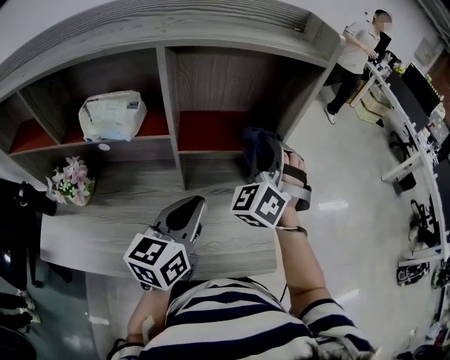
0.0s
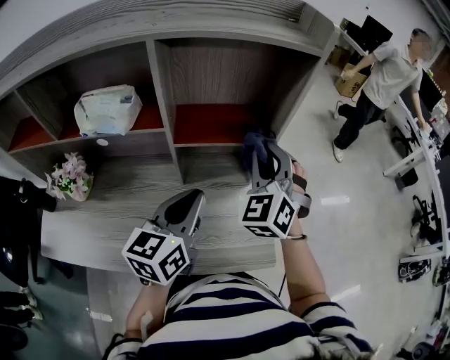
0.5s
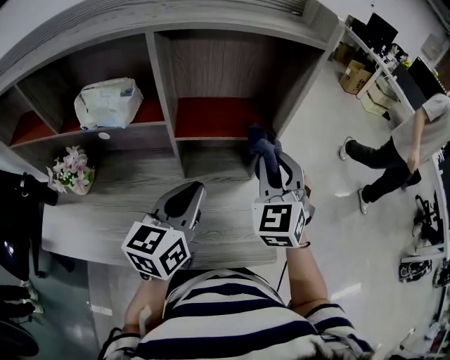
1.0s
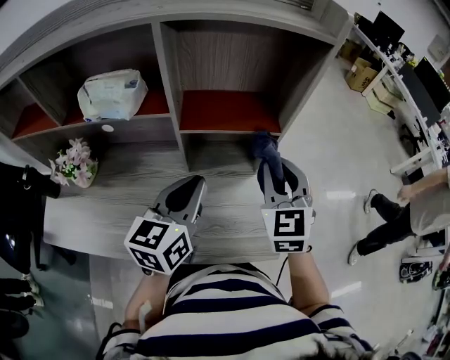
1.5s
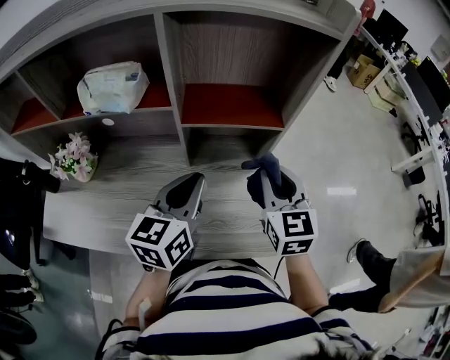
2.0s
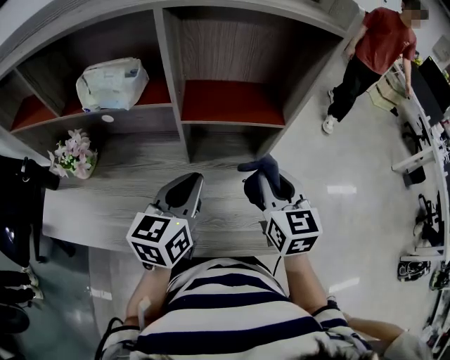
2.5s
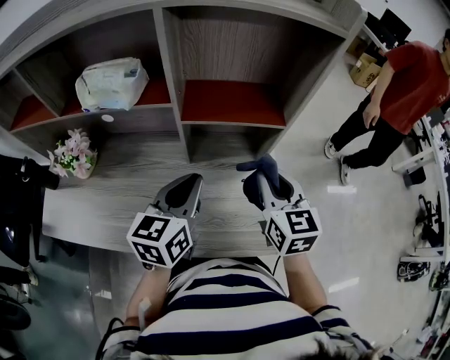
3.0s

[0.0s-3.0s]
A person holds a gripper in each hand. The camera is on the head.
0.0s to 1.5s: The right gripper shifts approximately 5 cm backward, and changes its angle by roughly 40 degrees.
1.5s to 3.0s: The right gripper turns by approximately 20 degrees.

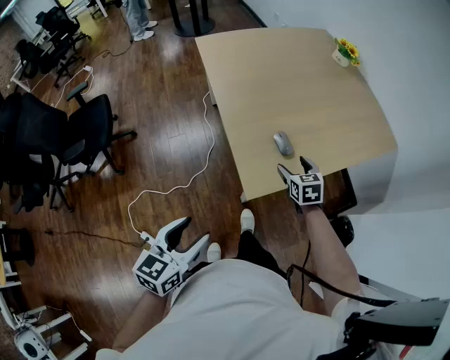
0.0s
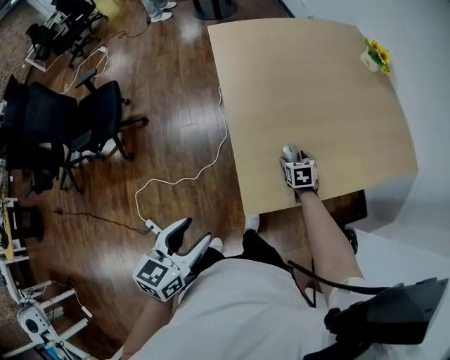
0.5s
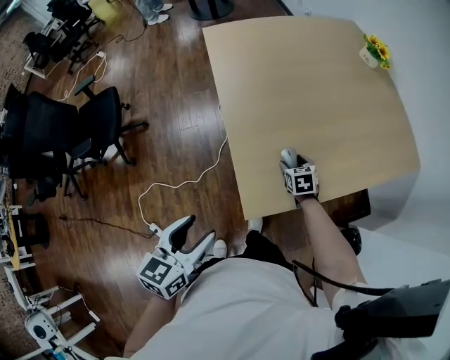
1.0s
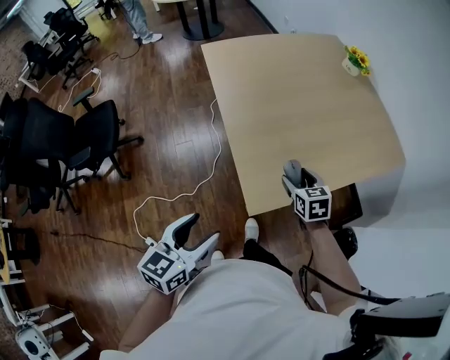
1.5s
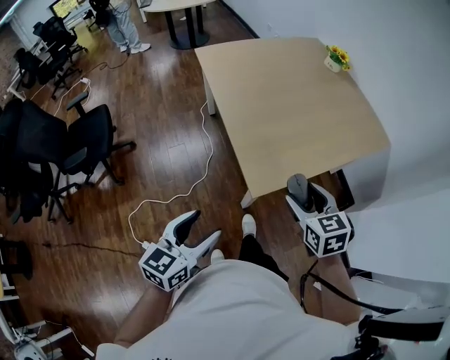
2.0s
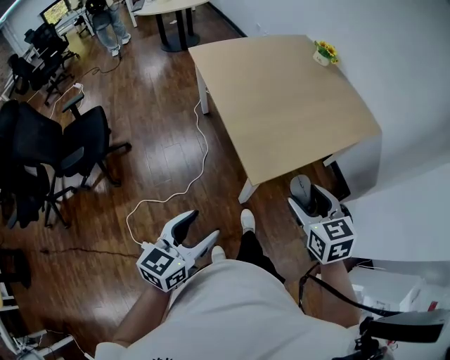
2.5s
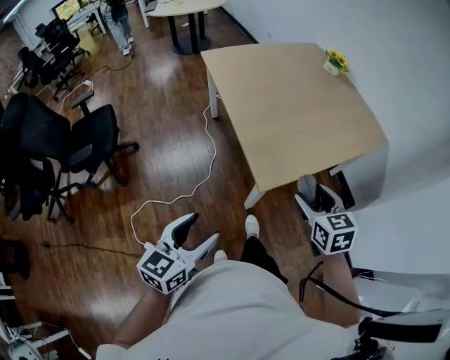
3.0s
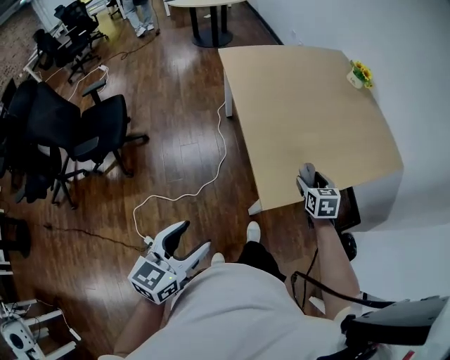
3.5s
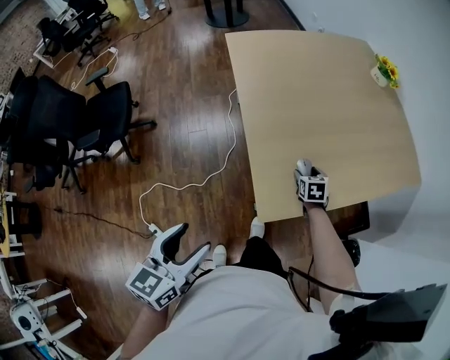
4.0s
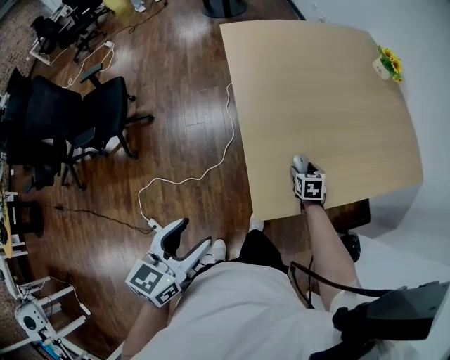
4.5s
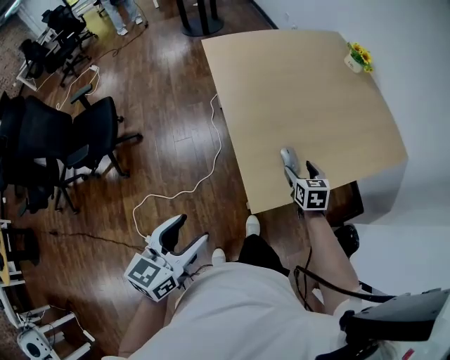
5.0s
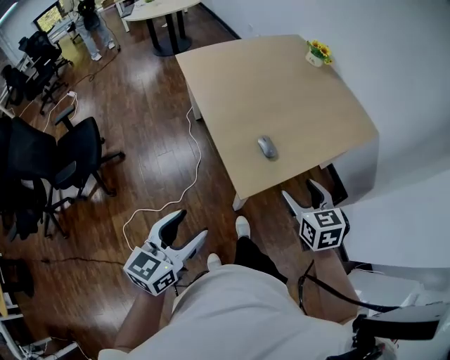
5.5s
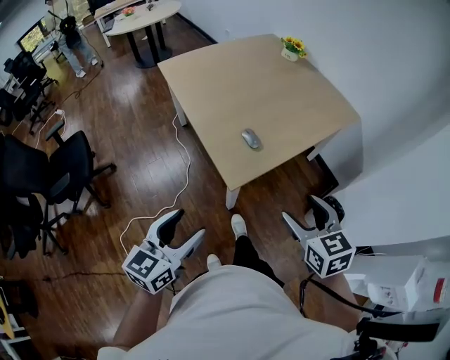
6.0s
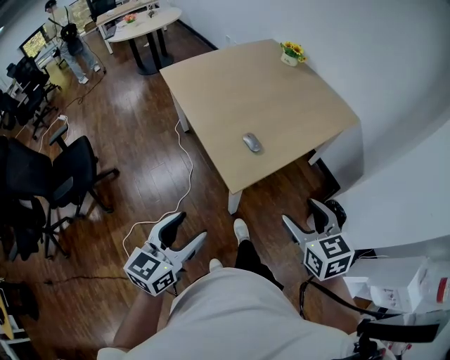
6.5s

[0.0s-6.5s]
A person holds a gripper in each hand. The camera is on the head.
0.0s to 2.0s: The right gripper heads upward and backward, covering about 20 cm; the left gripper reaches approximately 15 cm forward, then returns.
2.0s to 4.5s: The left gripper goes approximately 10 cm forward. The right gripper shifts some 40 cm downward and forward.
4.5s to 6.5s: The right gripper is displaced backward and upward by approximately 50 cm, and swivels roughly 30 degrees. The left gripper goes some 15 cm backward, and rotates approximately 30 degrees.

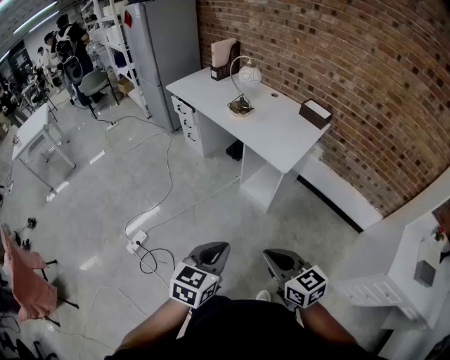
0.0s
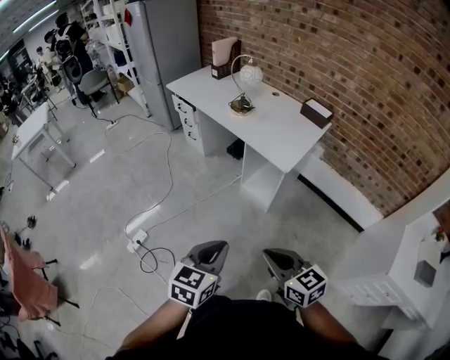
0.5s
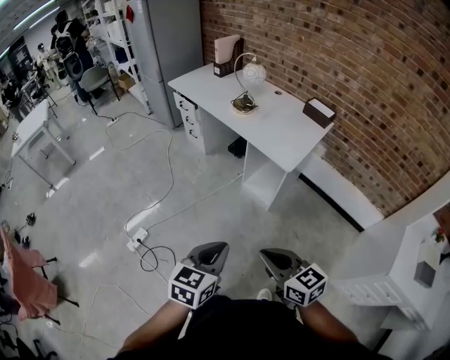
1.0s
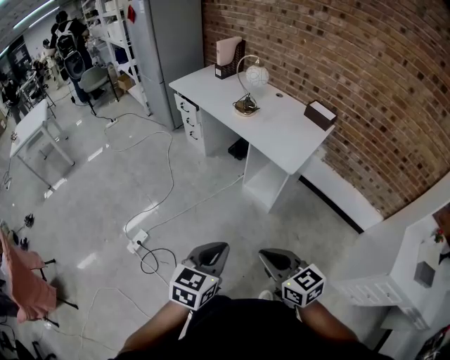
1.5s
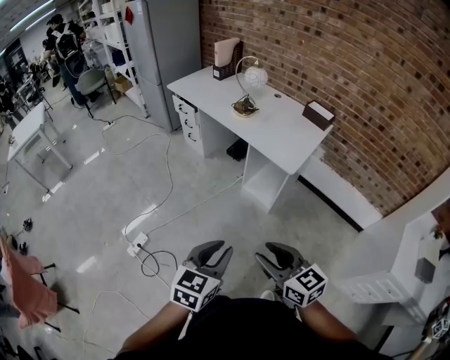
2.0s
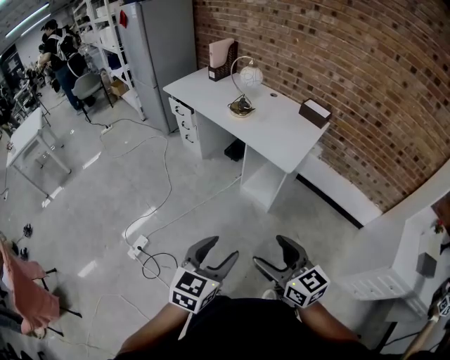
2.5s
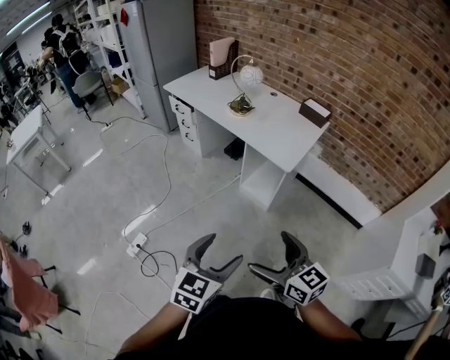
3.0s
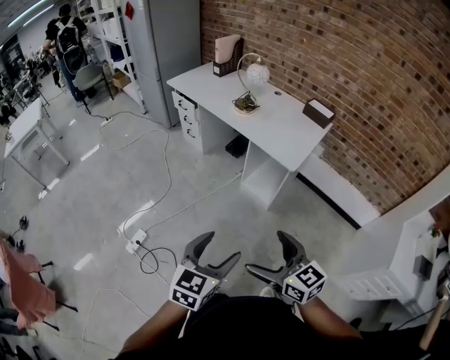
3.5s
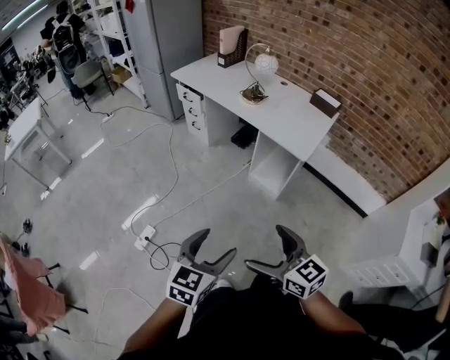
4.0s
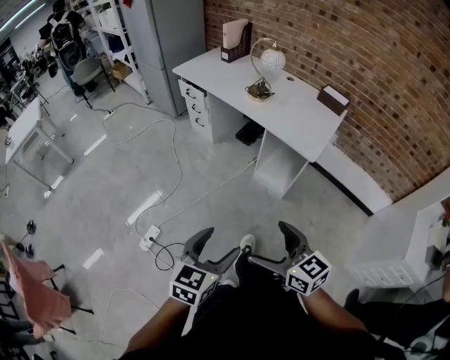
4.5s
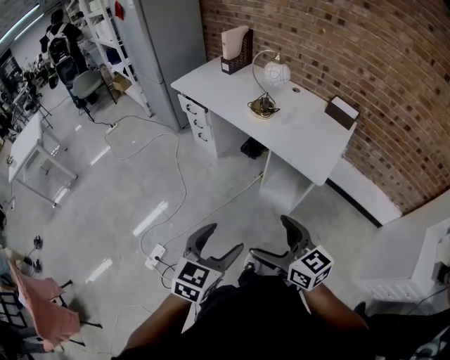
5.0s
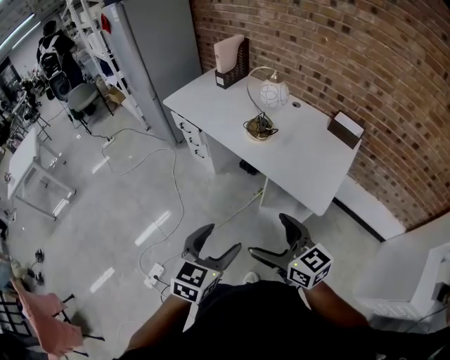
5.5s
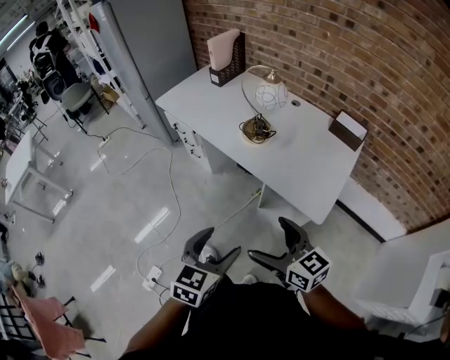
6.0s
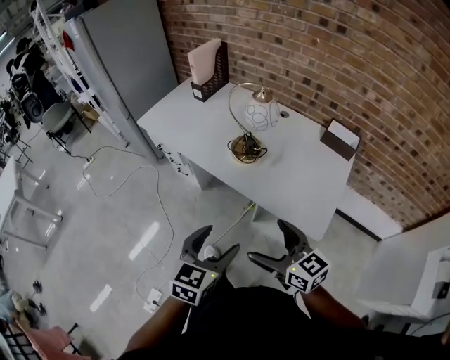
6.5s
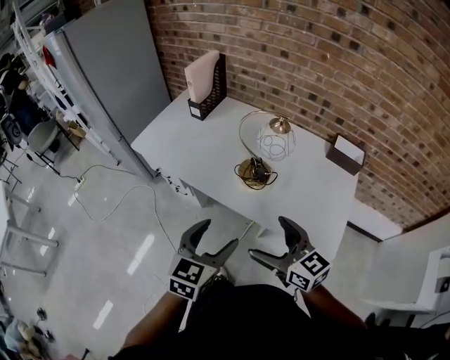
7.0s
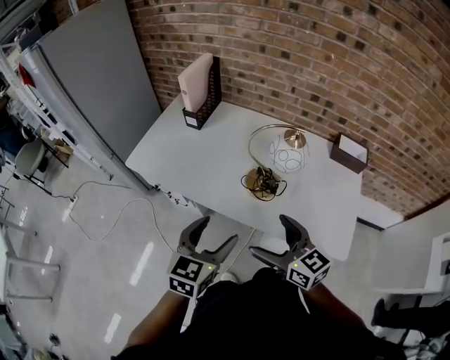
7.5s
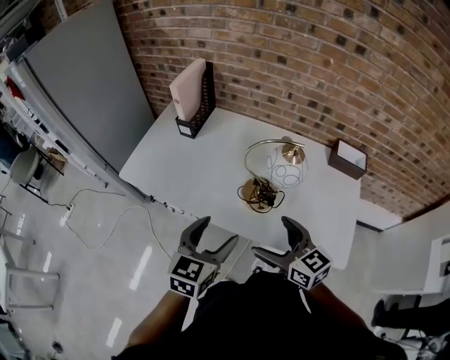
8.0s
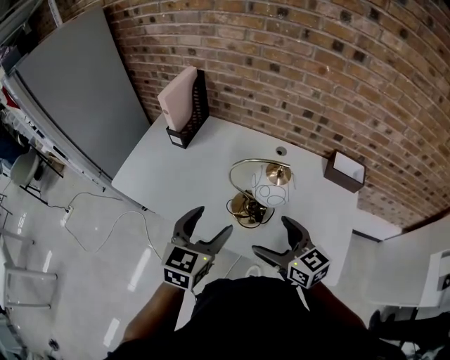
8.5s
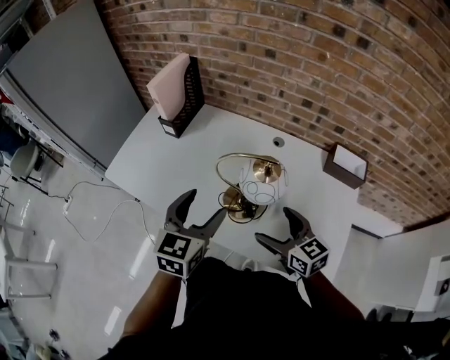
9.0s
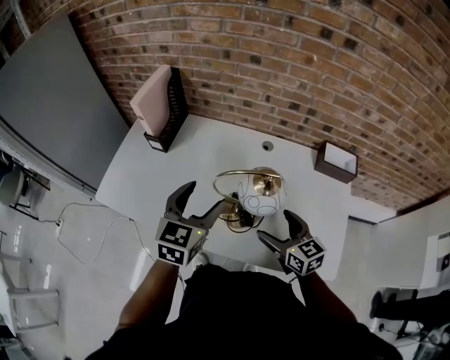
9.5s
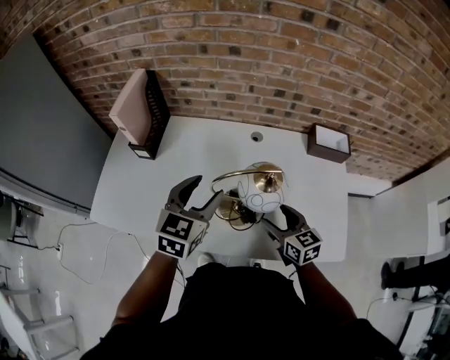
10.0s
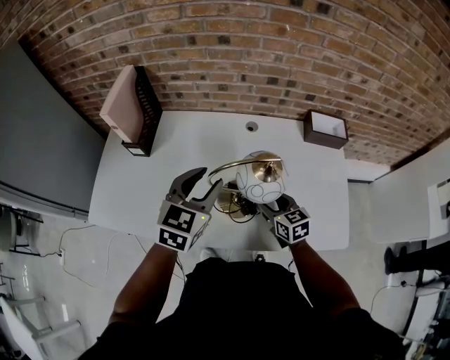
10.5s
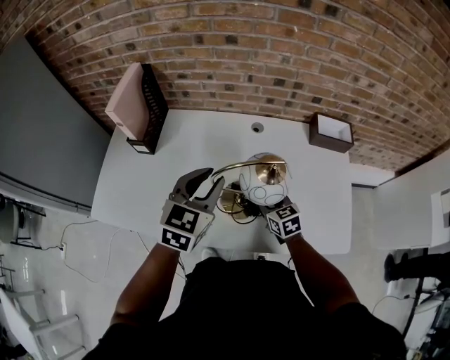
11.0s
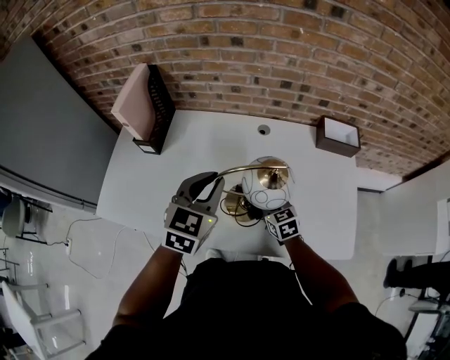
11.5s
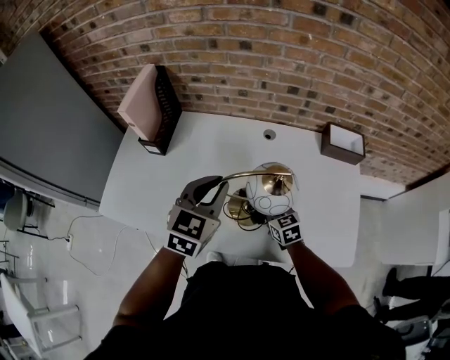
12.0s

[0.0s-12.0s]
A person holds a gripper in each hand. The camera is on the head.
0.0s to 2.0s: Both grippers move to the left, roughly 5 cm.
2.0s to 4.0s: The grippers both shift to the left by some 10 cm. The left gripper opens; the right gripper opens its fingers.
4.0s to 6.0s: The two grippers go about 35 cm forward.
6.0s to 8.0s: The grippers both shift forward by some 35 cm. The right gripper changes its angle by about 20 degrees.
8.0s to 10.0s: The right gripper moves forward, to the right and downward, approximately 20 cm, and rotates about 20 degrees. The left gripper moves forward, about 20 cm.
10.0s to 12.0s: The right gripper is displaced downward and forward by roughly 15 cm, and closes. Meanwhile the left gripper closes its fingers.

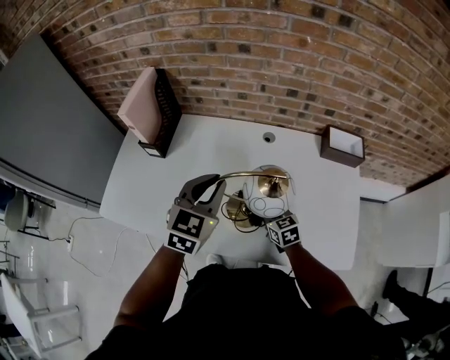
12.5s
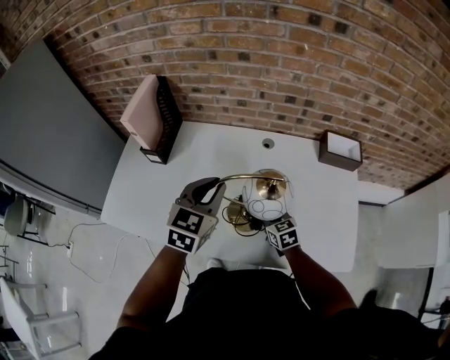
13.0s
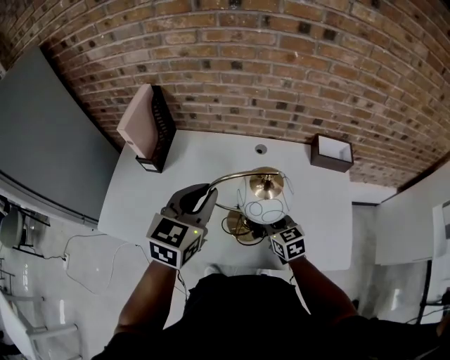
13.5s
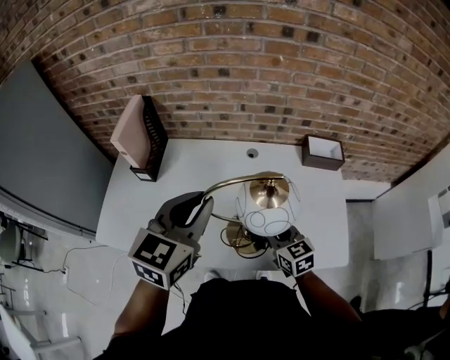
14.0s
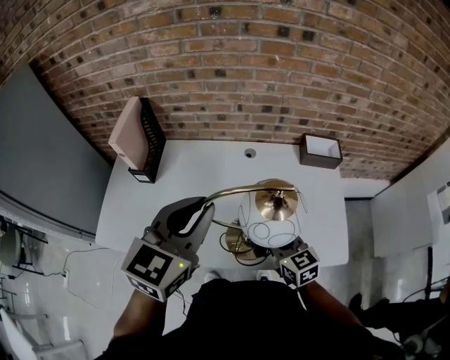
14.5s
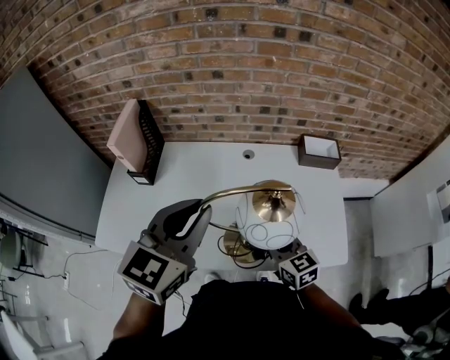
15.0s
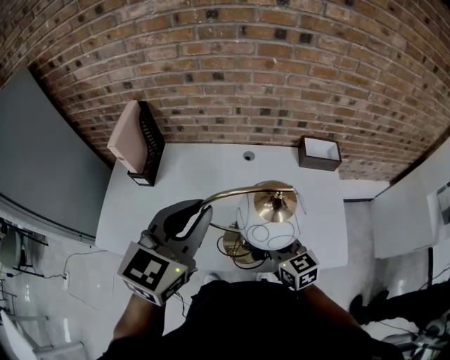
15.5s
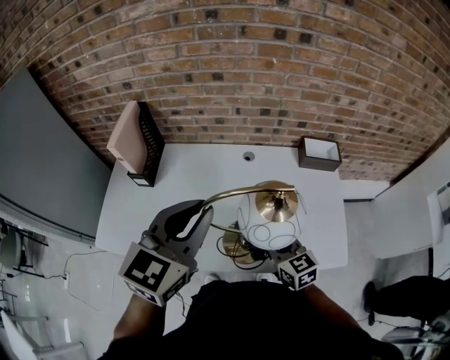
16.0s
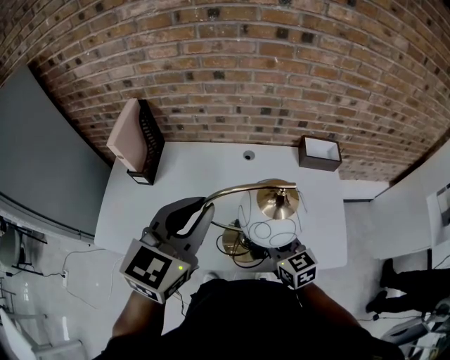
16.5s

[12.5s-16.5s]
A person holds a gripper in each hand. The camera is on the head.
12.5s to 14.5s: Both grippers travel together upward and backward, roughly 15 cm.
14.5s to 16.5s: Neither gripper changes place.

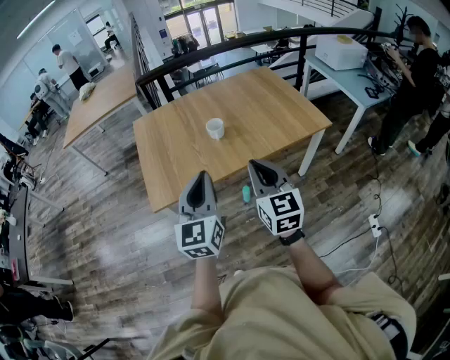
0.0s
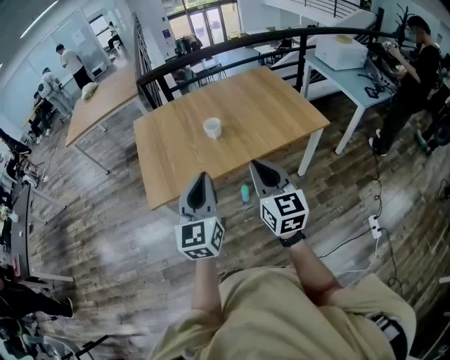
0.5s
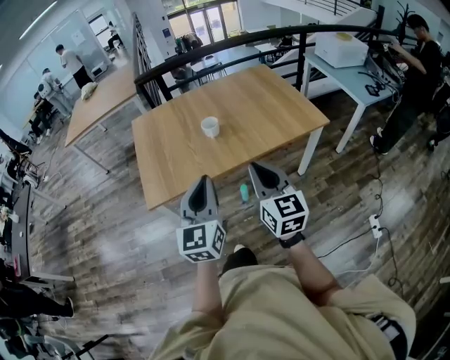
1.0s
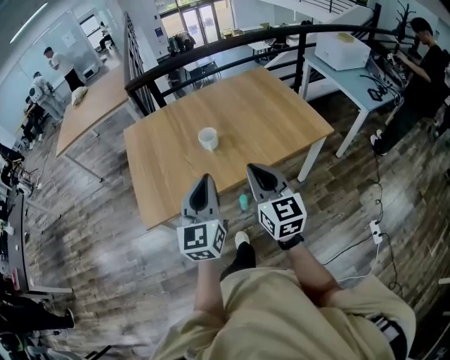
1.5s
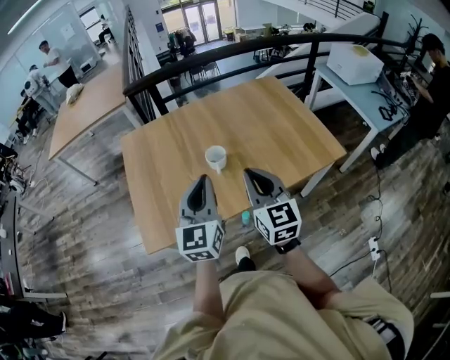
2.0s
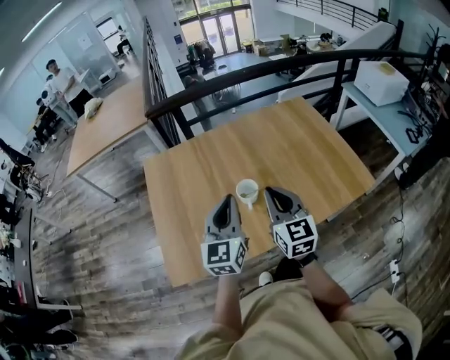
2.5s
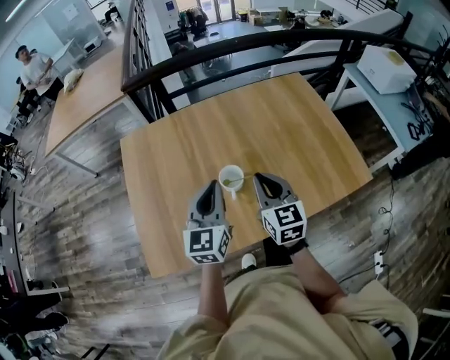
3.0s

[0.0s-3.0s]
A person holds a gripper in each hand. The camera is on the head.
0.0s to 1.5s: Both grippers move forward, some 10 cm.
1.5s to 3.0s: Both grippers travel together forward, some 35 cm.
